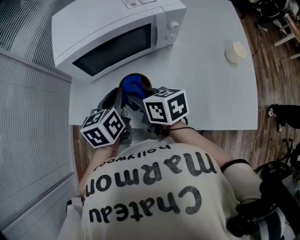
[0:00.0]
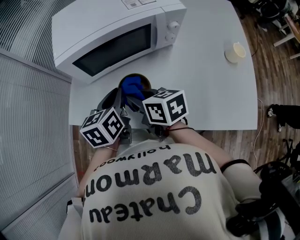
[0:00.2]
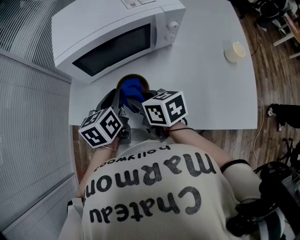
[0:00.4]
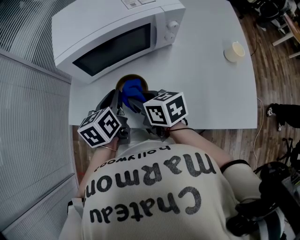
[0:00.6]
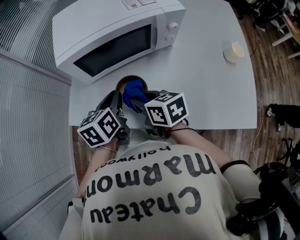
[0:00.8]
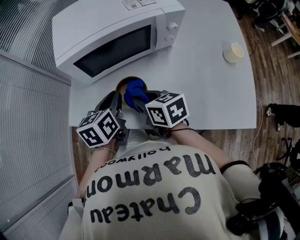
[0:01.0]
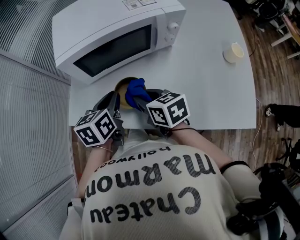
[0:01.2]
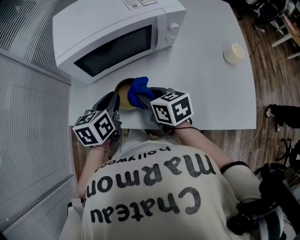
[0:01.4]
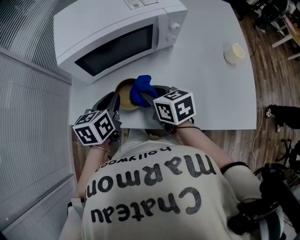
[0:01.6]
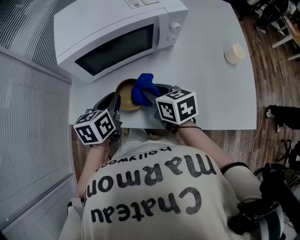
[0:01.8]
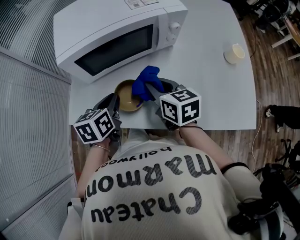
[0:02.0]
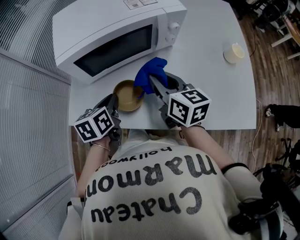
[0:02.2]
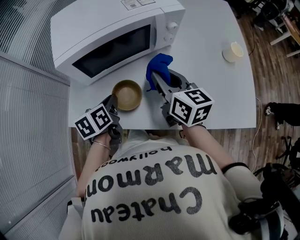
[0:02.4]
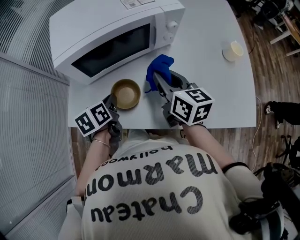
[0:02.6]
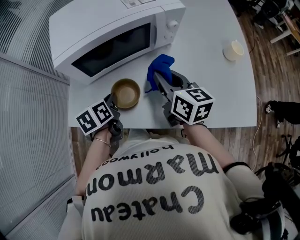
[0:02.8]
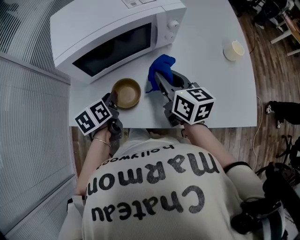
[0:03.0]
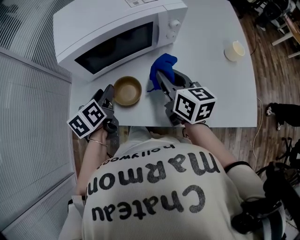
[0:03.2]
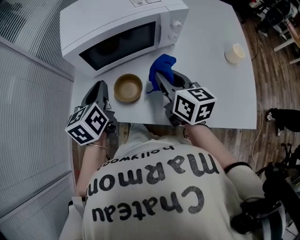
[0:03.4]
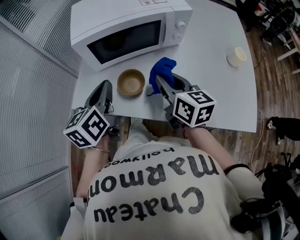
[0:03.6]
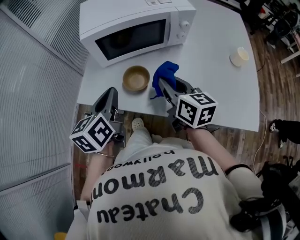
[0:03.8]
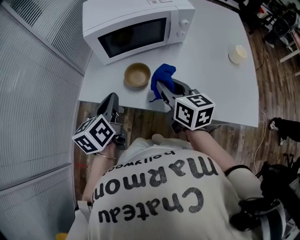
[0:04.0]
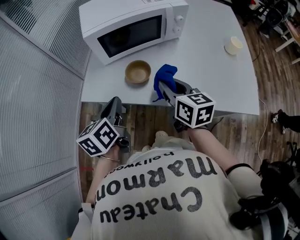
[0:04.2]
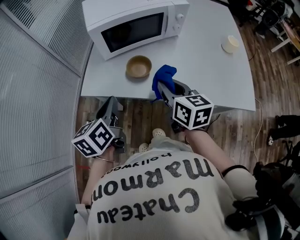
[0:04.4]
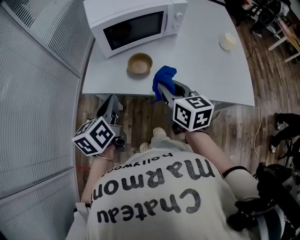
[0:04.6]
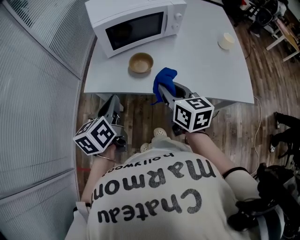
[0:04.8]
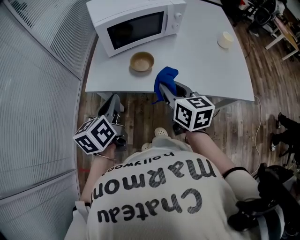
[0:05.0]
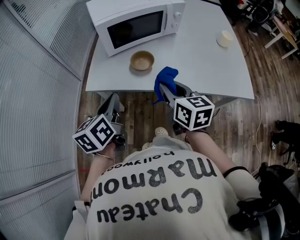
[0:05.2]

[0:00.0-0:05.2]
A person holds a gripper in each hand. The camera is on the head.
0:00.0 to 0:01.8: The right gripper shifts some 5 cm to the right.
0:01.8 to 0:03.4: The grippers both shift upward by approximately 5 cm. The right gripper turns by about 20 degrees. Meanwhile the left gripper opens, then closes again.
0:03.4 to 0:05.2: The right gripper is displaced backward and to the left by approximately 20 cm. Meanwhile the left gripper is displaced backward by about 20 cm.

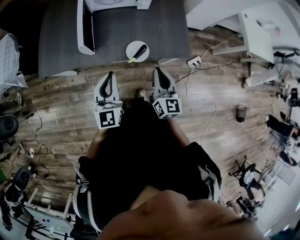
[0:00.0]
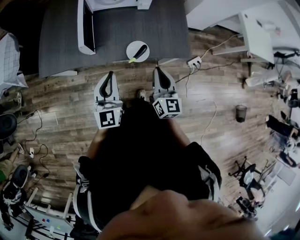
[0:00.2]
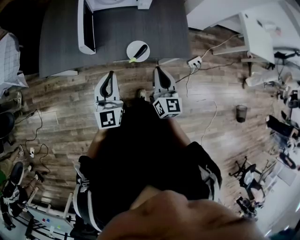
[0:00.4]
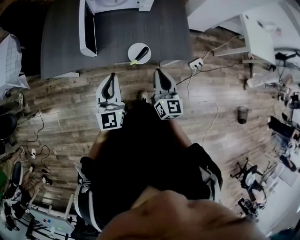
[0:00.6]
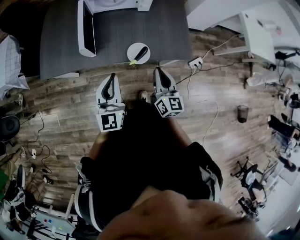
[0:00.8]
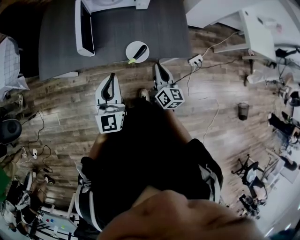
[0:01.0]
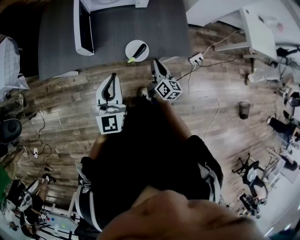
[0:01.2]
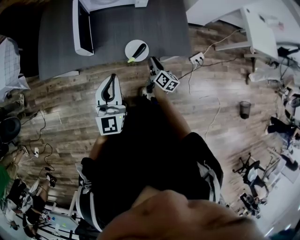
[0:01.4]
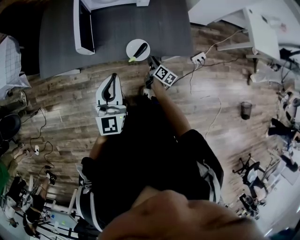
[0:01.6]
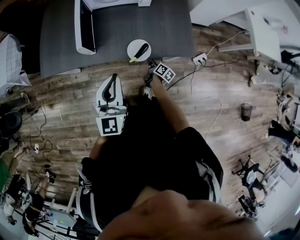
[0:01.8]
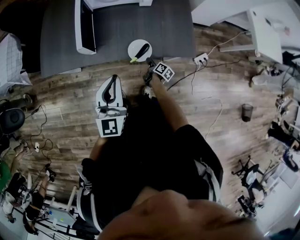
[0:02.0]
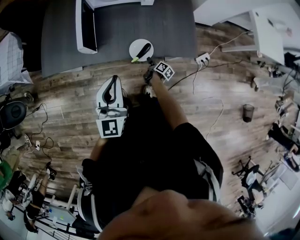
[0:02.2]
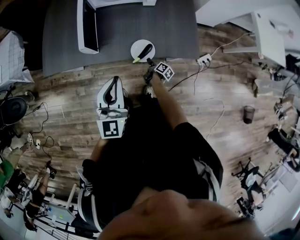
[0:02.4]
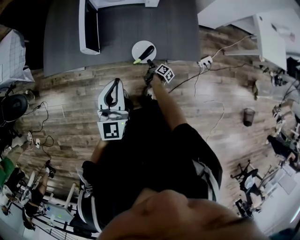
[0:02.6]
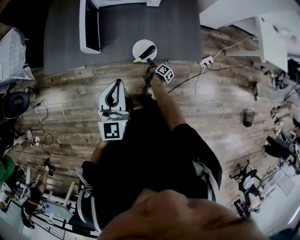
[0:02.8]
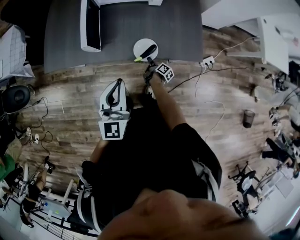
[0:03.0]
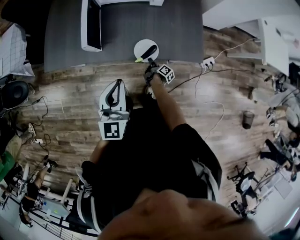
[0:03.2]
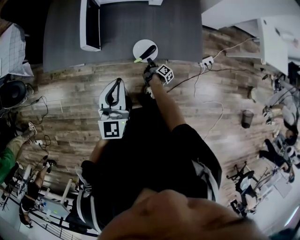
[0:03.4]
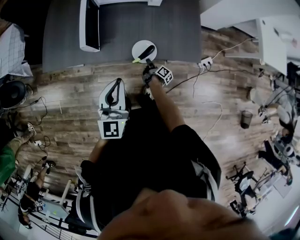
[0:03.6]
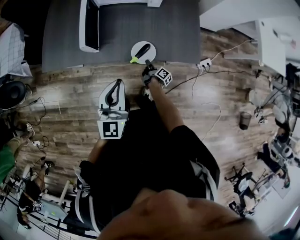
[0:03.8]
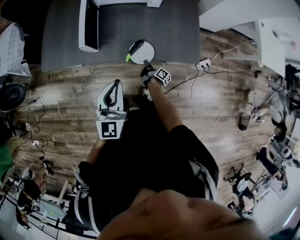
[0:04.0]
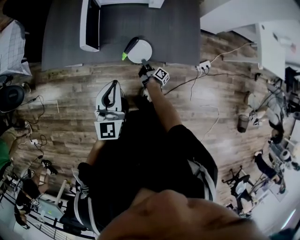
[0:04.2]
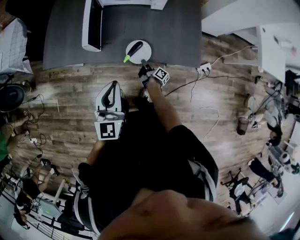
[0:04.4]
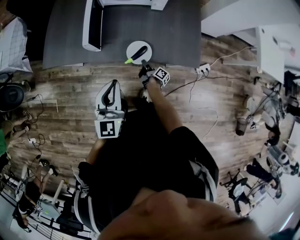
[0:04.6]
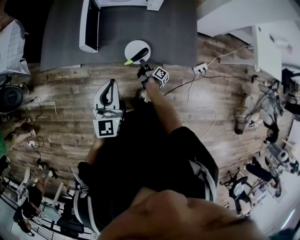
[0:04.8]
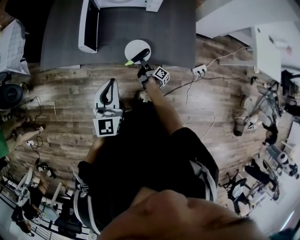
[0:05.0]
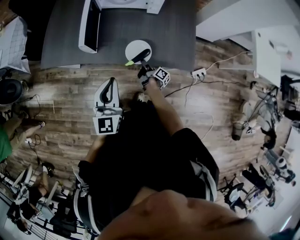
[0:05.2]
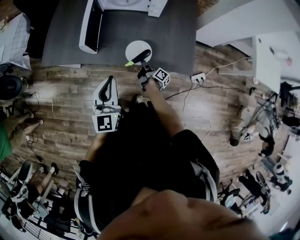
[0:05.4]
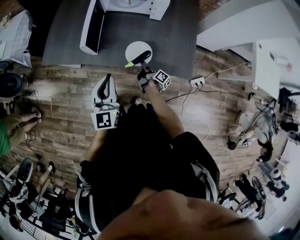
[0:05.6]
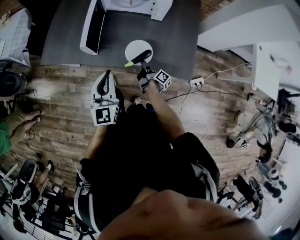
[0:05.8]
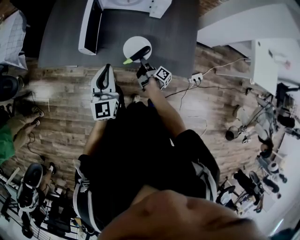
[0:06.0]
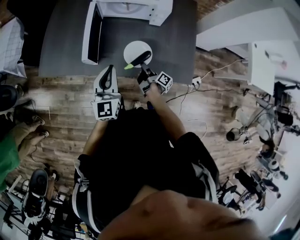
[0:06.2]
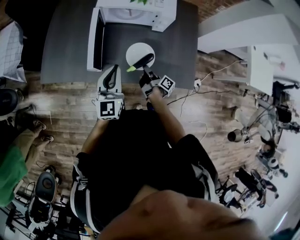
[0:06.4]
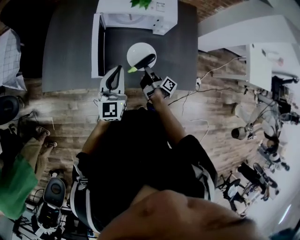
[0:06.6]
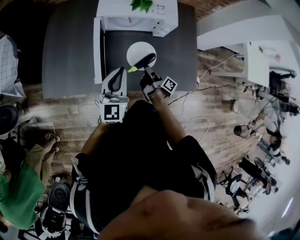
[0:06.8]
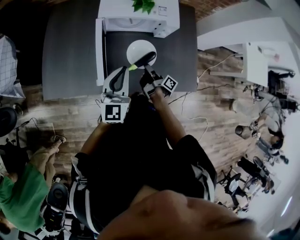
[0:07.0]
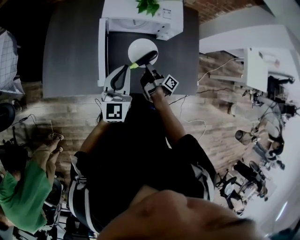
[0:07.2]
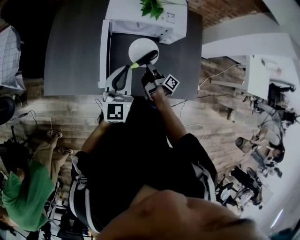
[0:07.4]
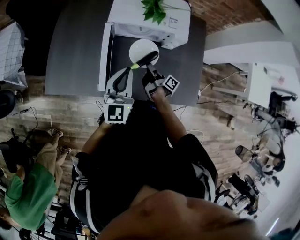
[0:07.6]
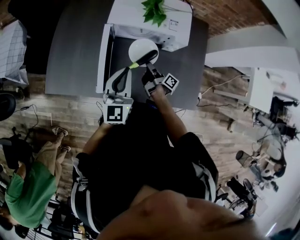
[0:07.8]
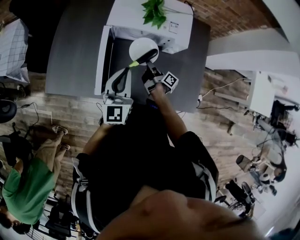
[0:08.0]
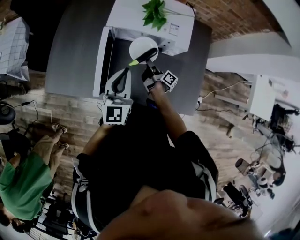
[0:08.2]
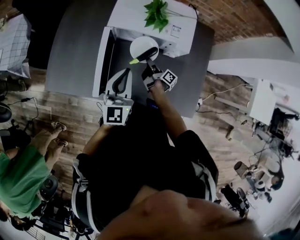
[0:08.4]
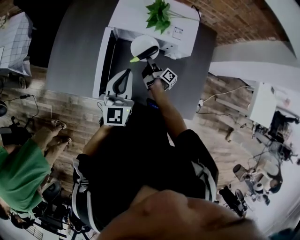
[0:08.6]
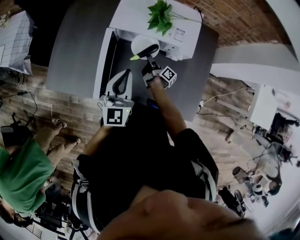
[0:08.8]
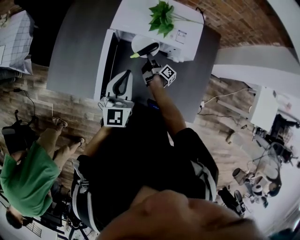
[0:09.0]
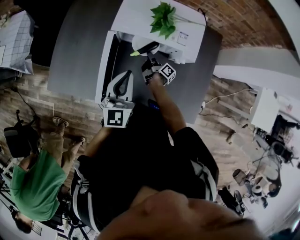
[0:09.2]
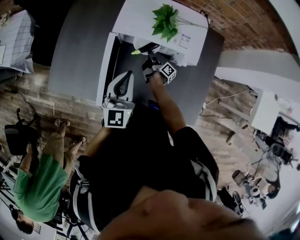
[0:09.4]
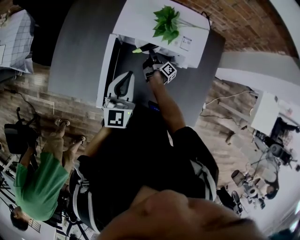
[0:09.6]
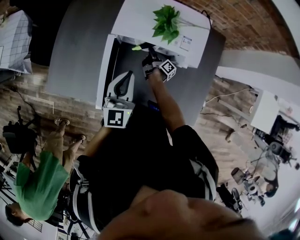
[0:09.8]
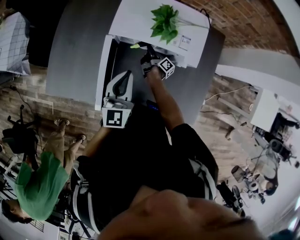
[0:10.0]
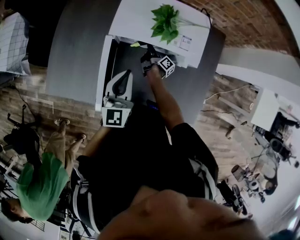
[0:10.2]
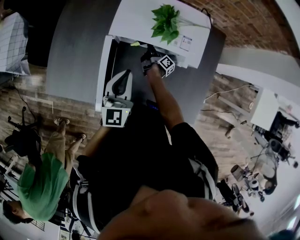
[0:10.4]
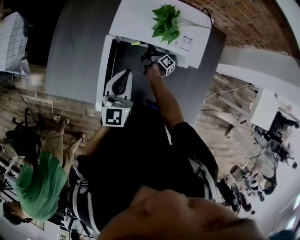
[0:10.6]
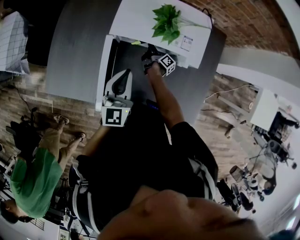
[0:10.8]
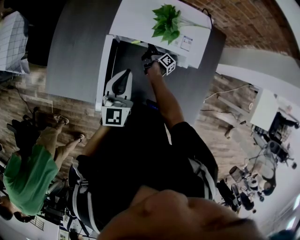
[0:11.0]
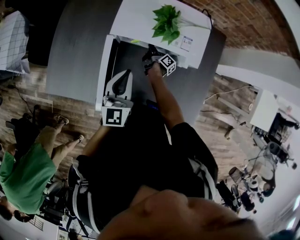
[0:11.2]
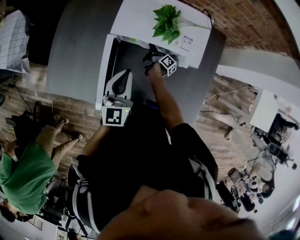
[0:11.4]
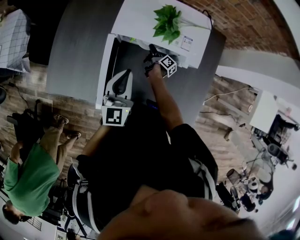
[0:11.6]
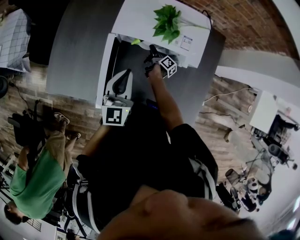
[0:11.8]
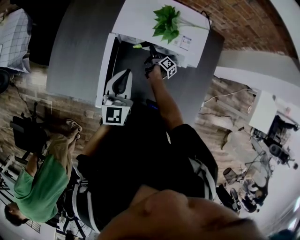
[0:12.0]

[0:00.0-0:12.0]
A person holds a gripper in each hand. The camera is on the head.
0:04.4 to 0:06.0: The left gripper shifts by some 10 cm.
0:06.0 to 0:07.6: The left gripper changes place by about 20 cm.
0:07.6 to 0:09.0: The left gripper moves roughly 5 cm.
0:09.0 to 0:10.4: The left gripper ends up some 5 cm from where it was.

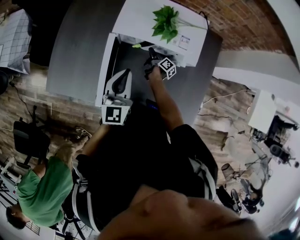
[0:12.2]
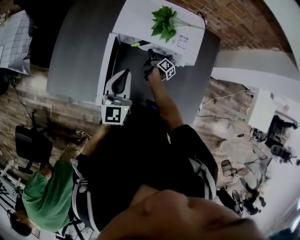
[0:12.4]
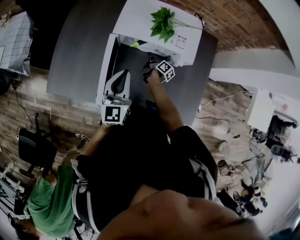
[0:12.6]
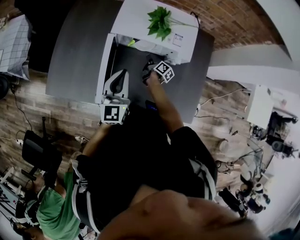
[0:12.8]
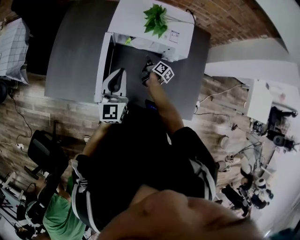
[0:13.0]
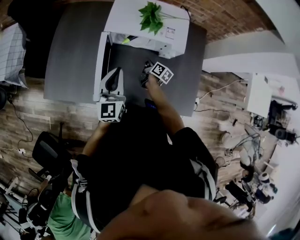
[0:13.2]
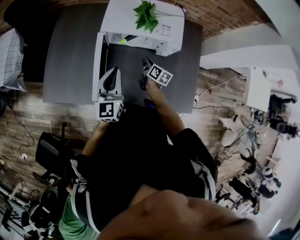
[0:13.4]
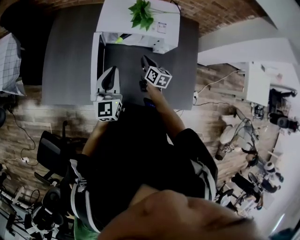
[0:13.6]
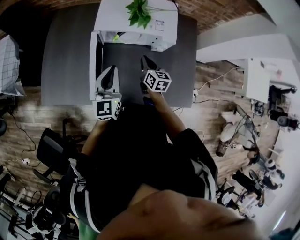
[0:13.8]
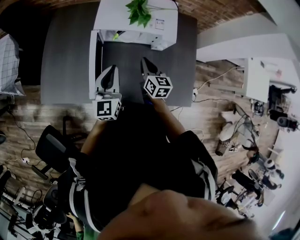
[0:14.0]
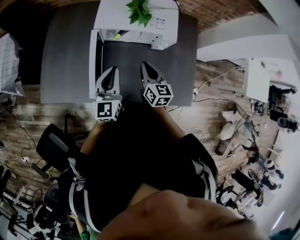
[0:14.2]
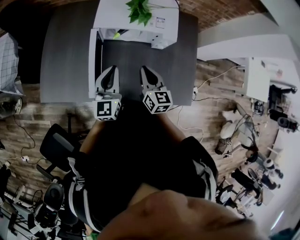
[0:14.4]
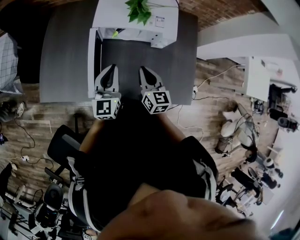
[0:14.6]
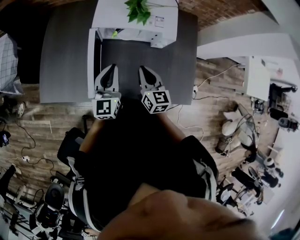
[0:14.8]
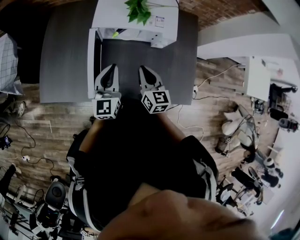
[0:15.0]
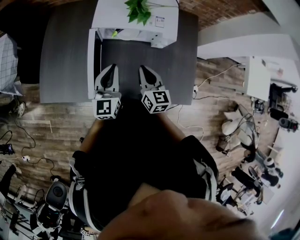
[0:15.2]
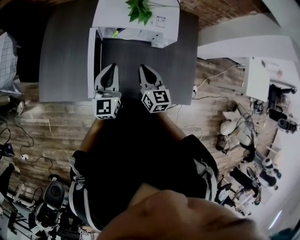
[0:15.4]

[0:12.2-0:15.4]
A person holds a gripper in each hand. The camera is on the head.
0:12.2 to 0:13.8: The left gripper shifts by approximately 5 cm.

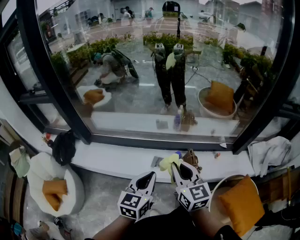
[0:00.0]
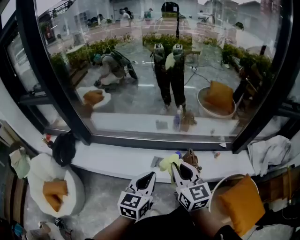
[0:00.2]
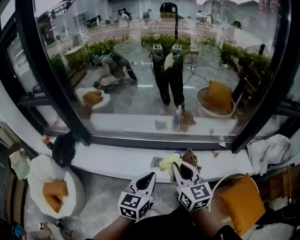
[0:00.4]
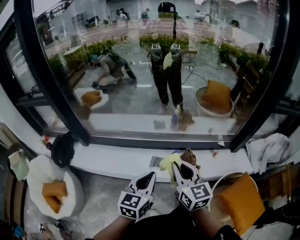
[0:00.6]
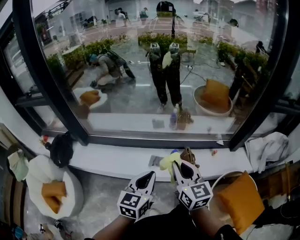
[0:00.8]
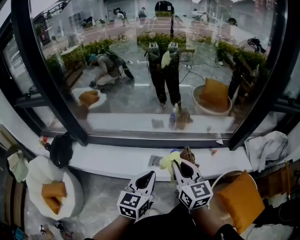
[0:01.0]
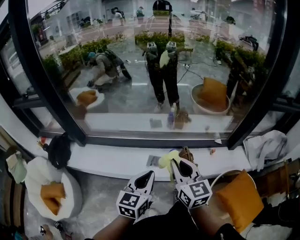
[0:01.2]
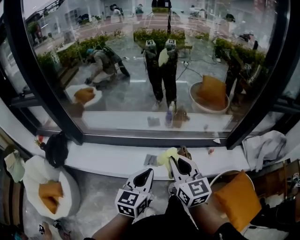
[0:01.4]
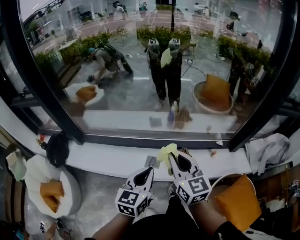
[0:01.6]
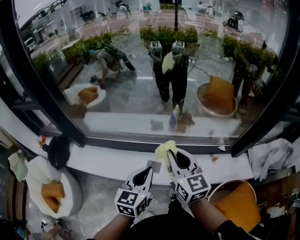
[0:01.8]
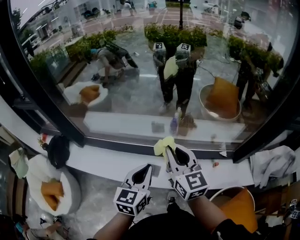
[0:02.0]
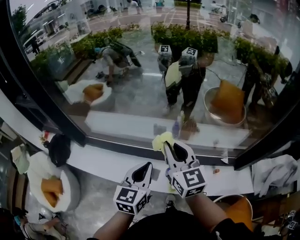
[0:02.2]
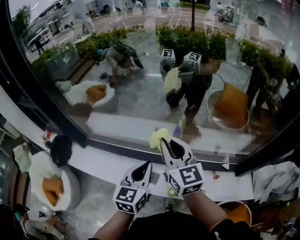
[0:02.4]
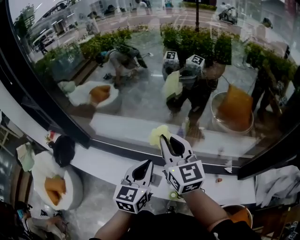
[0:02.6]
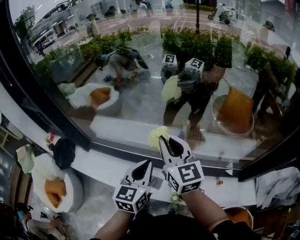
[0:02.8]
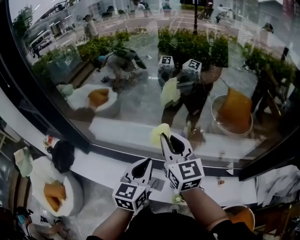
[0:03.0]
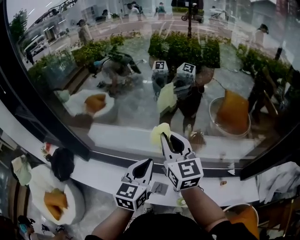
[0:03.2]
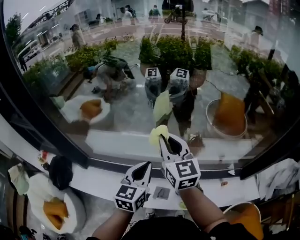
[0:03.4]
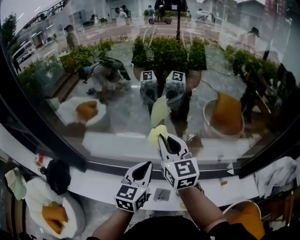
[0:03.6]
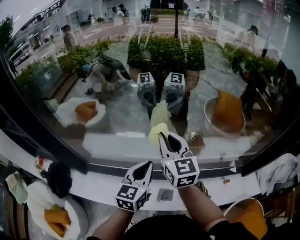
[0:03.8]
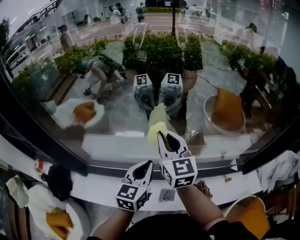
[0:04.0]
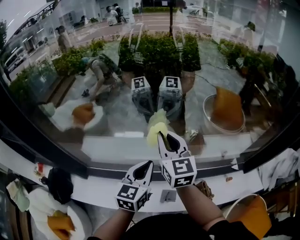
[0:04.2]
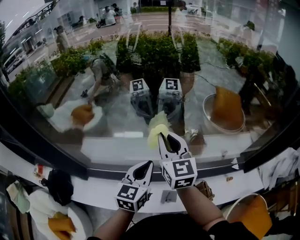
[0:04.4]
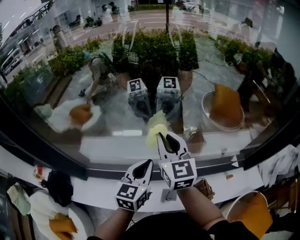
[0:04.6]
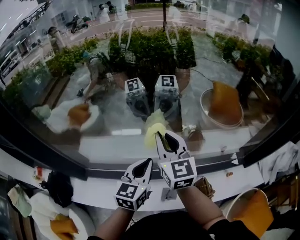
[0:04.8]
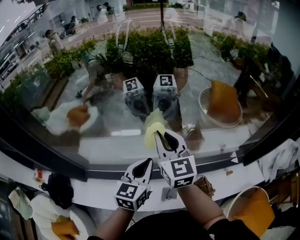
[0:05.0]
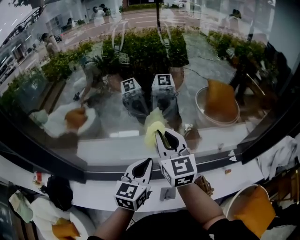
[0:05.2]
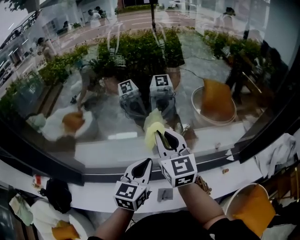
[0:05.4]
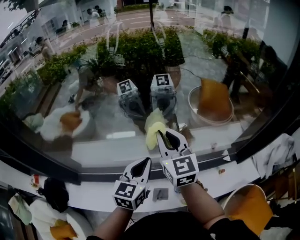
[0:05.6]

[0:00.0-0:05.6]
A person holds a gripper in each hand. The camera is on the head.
0:00.0 to 0:01.4: There are only small adjustments of the grippers.
0:01.4 to 0:02.8: Both grippers move forward, about 30 cm.
0:02.8 to 0:04.2: Both grippers move to the left and forward, approximately 20 cm.
0:04.2 to 0:05.6: The grippers both shift to the right by about 10 cm.
